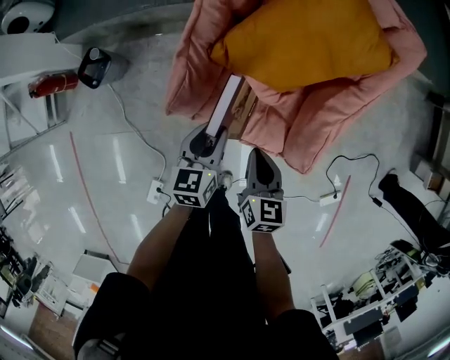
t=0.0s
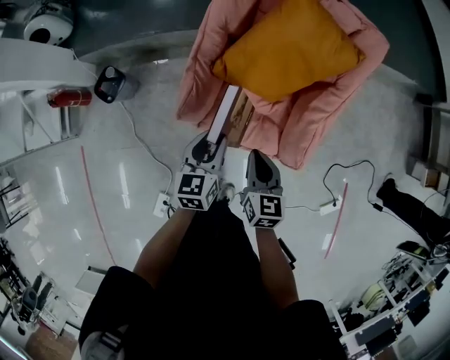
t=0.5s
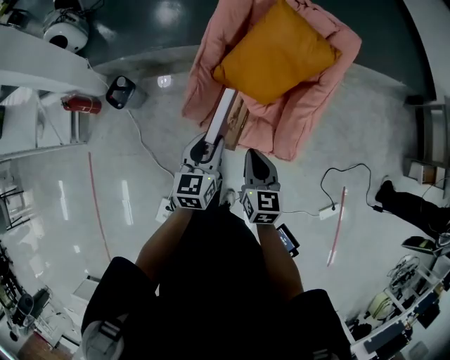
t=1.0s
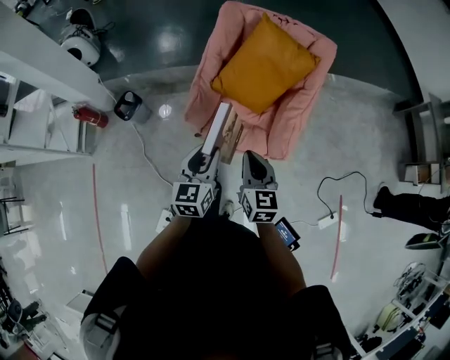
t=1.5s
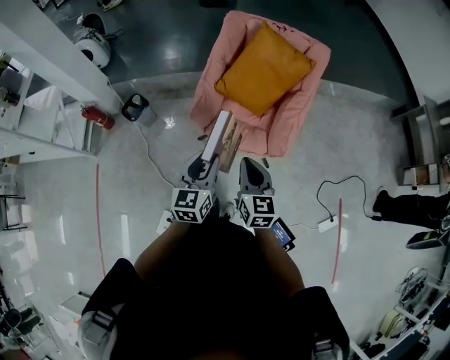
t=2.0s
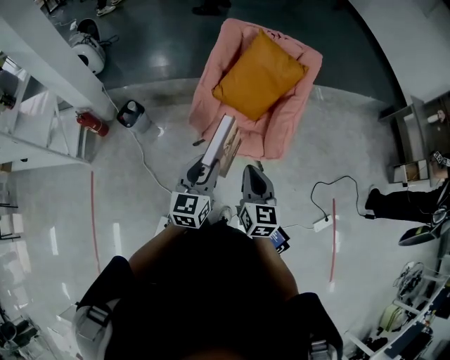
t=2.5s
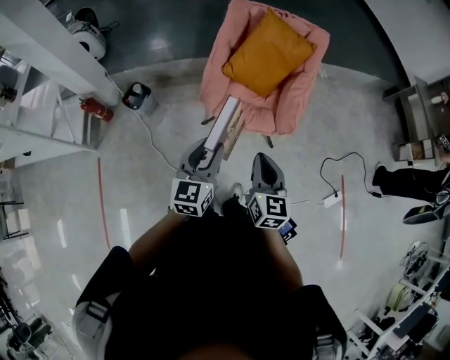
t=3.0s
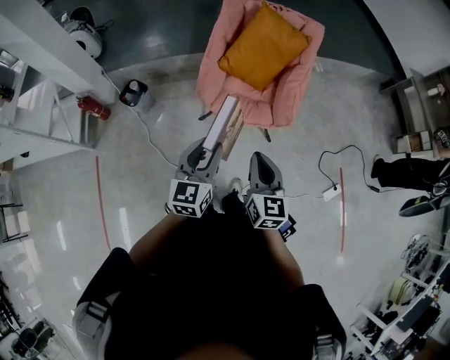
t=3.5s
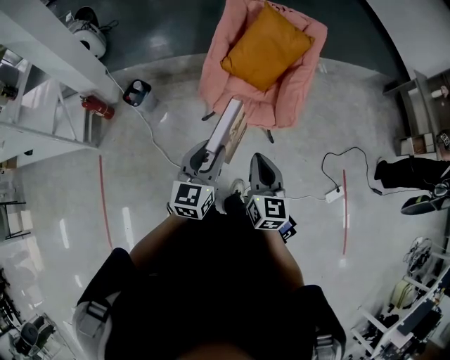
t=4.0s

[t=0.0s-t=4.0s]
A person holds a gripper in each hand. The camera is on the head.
t=0.0s to t=2.0s: Both grippers move upward and backward, about 40 cm. The right gripper changes its angle by roughly 20 degrees, while the left gripper changes its angle by roughly 20 degrees.
t=2.0s to t=4.0s: The left gripper heads backward and to the left, covering approximately 15 cm, while the right gripper is displaced backward by approximately 15 cm.

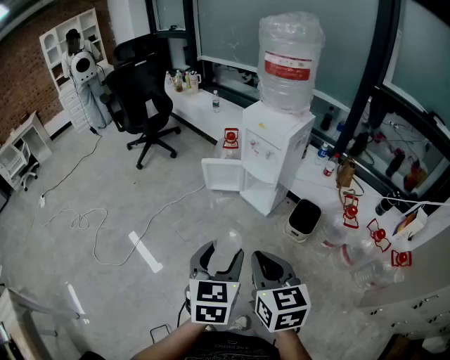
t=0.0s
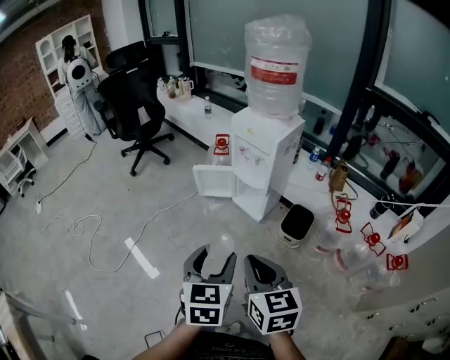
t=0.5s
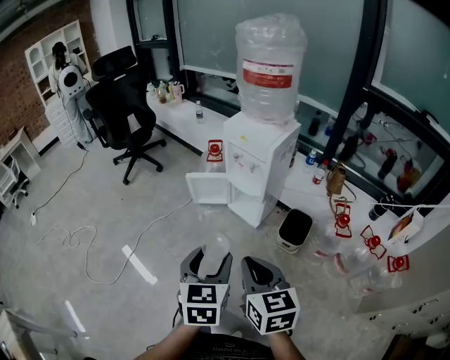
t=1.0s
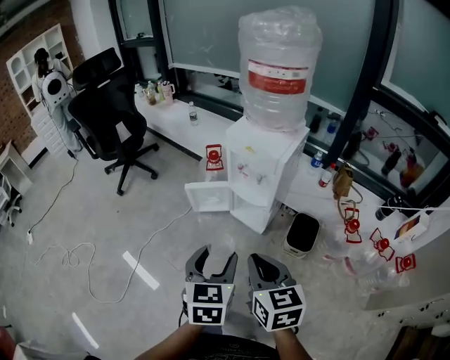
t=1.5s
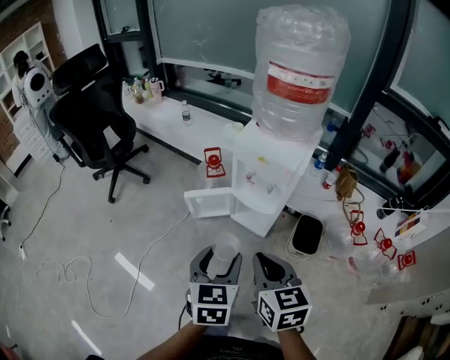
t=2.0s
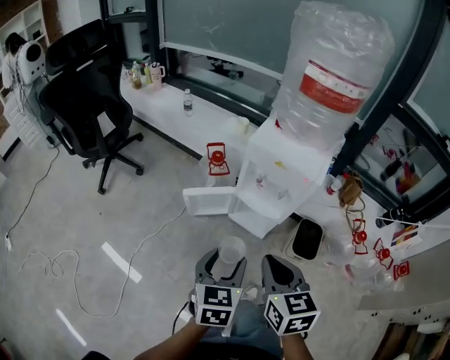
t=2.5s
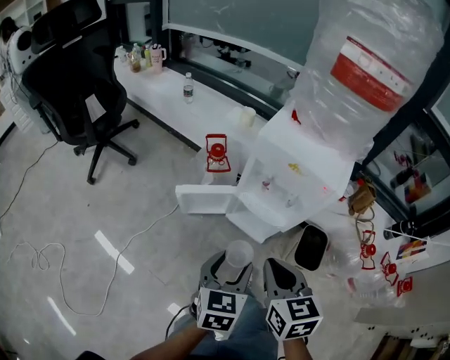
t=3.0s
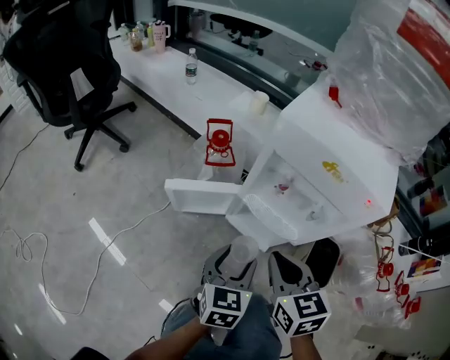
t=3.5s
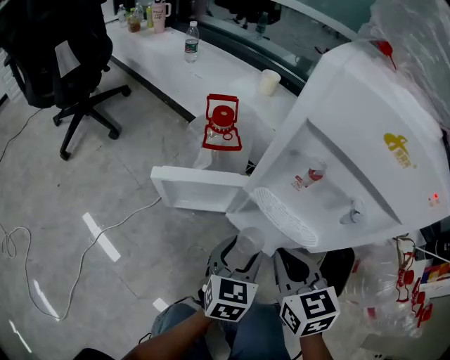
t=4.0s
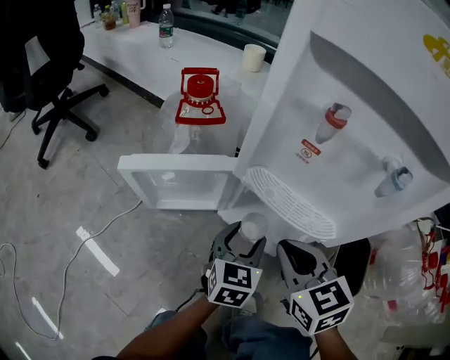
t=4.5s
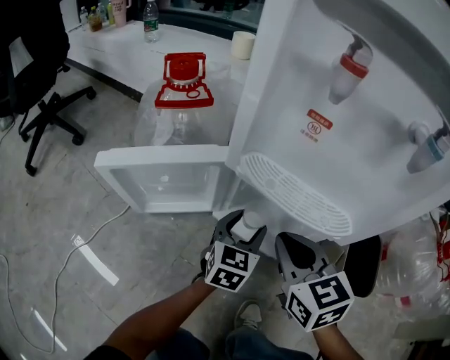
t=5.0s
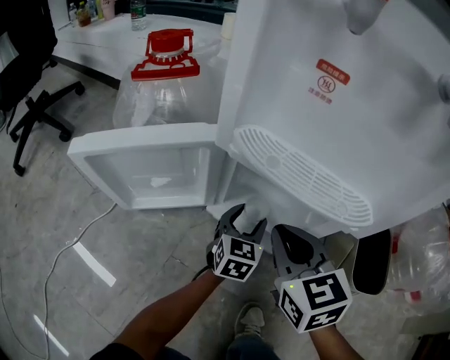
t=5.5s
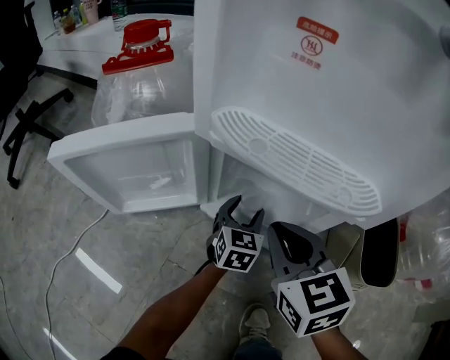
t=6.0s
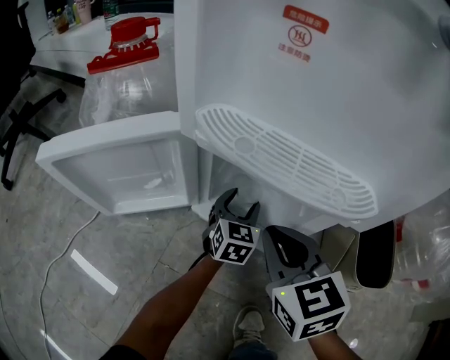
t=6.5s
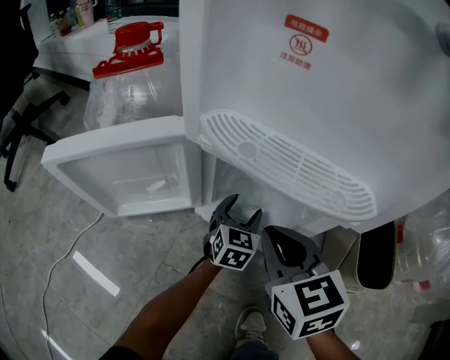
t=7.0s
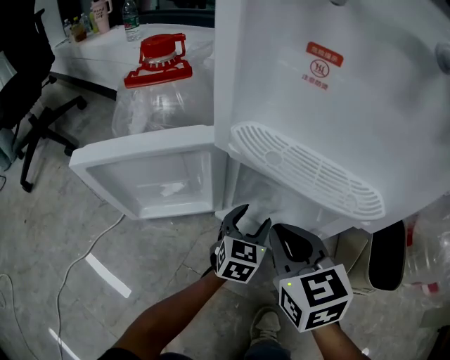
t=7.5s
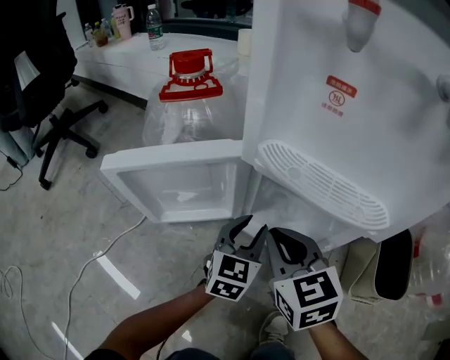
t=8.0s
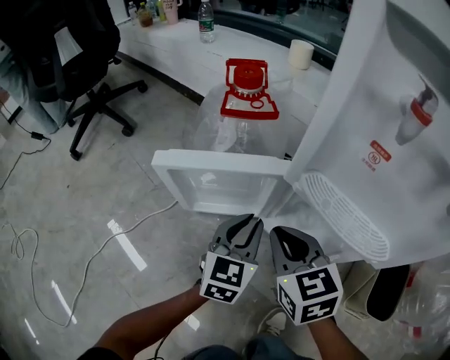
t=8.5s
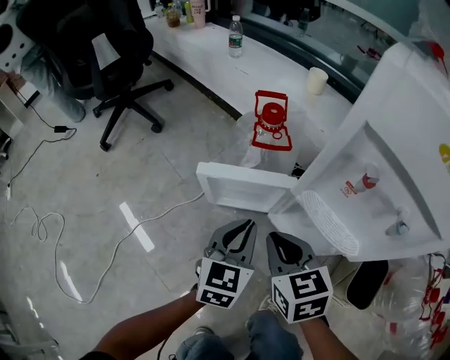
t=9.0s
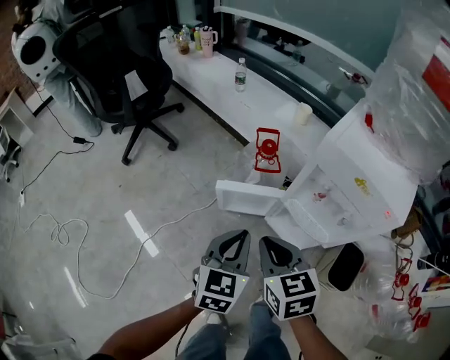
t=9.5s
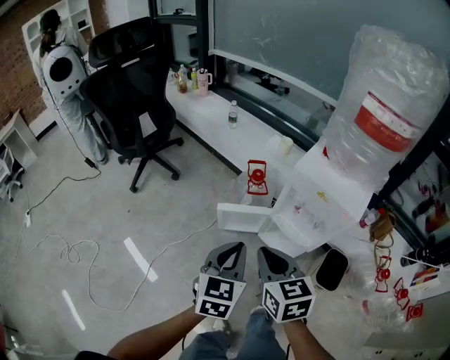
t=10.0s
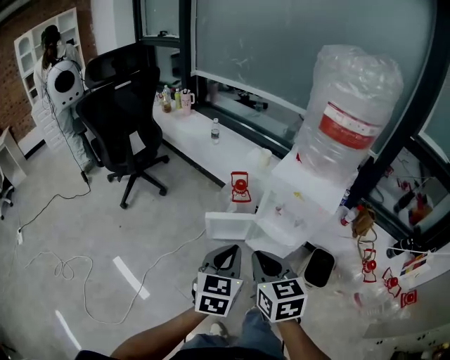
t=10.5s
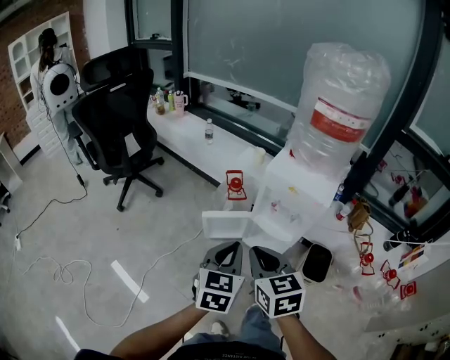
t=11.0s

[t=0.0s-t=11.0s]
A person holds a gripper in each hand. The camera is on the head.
t=0.0s to t=2.0s: Both grippers move forward, approximately 30 cm.
t=2.0s to t=3.5s: Both grippers move downward and forward, about 35 cm.
t=3.5s to t=5.5s: The left gripper is displaced downward and forward by about 50 cm; the right gripper is displaced downward by roughly 35 cm.
t=7.5s to t=9.0s: The right gripper shifts roughly 25 cm upward and to the left, and changes its angle by approximately 20 degrees. The left gripper goes about 40 cm upward and to the left, and closes up.
t=9.0s to t=11.0s: The grippers both shift upward and backward by roughly 50 cm.

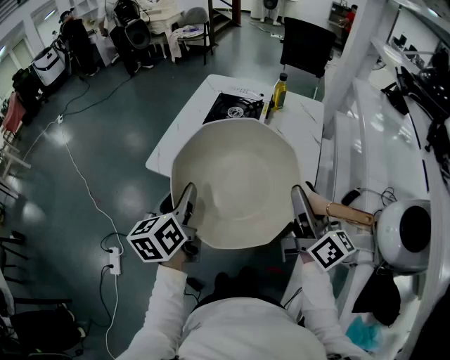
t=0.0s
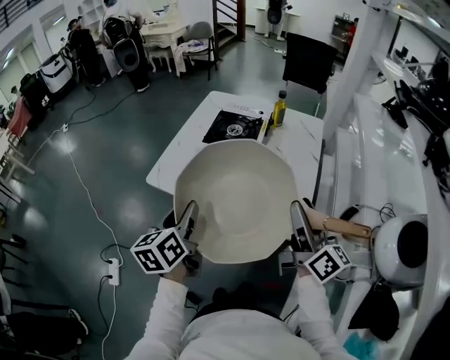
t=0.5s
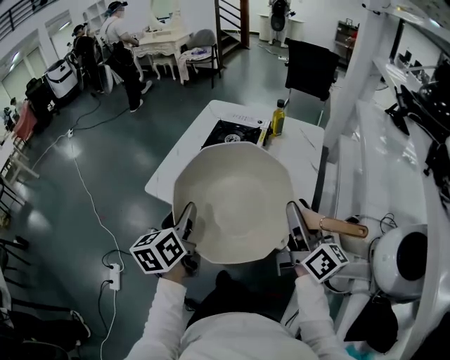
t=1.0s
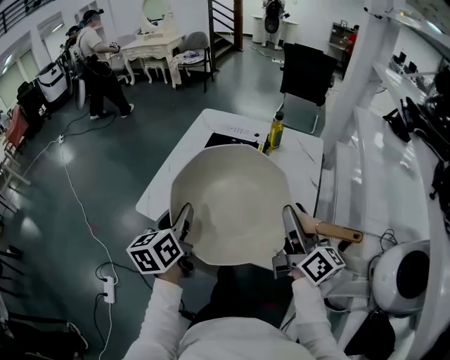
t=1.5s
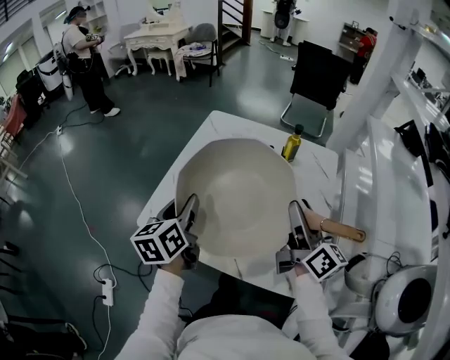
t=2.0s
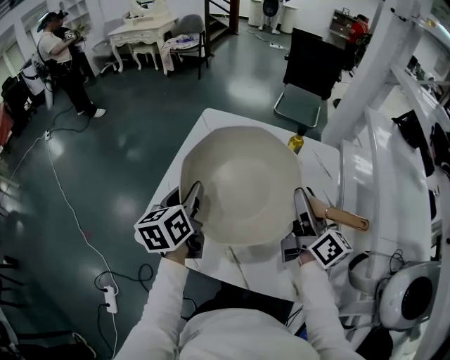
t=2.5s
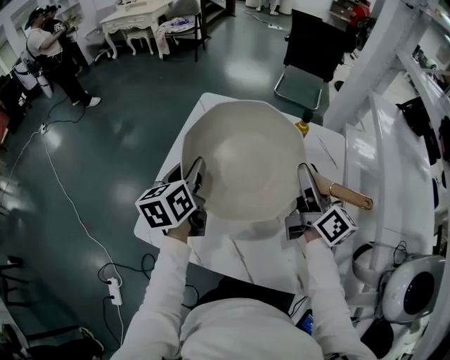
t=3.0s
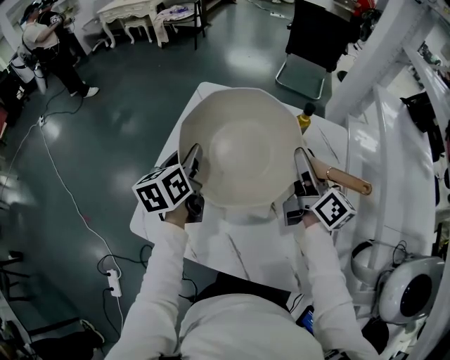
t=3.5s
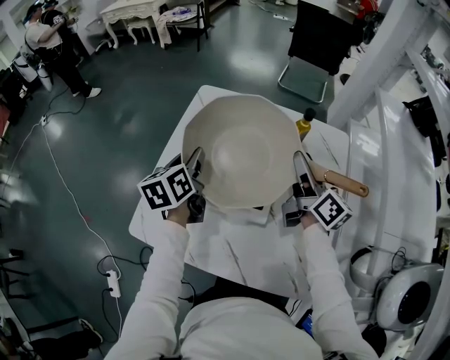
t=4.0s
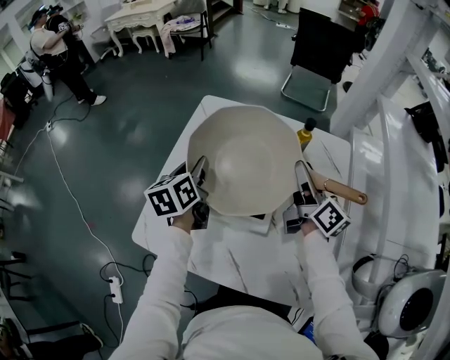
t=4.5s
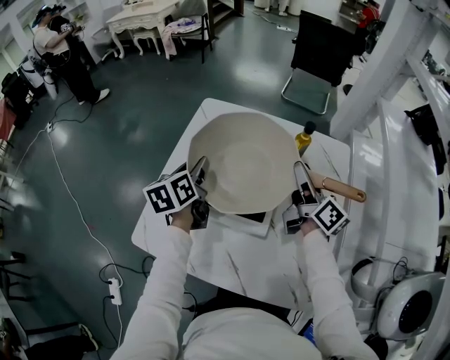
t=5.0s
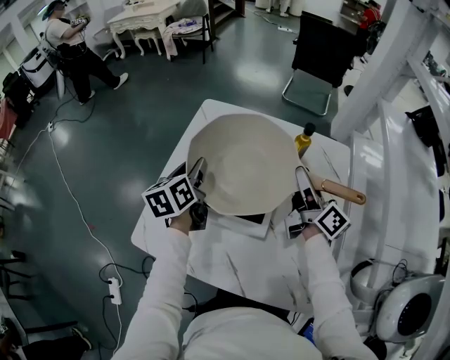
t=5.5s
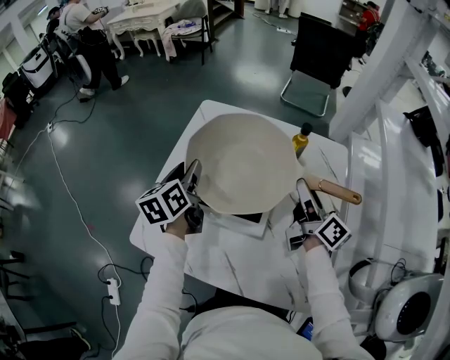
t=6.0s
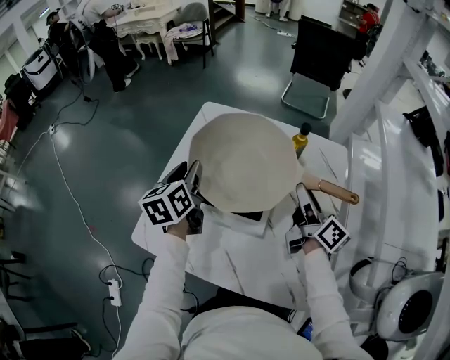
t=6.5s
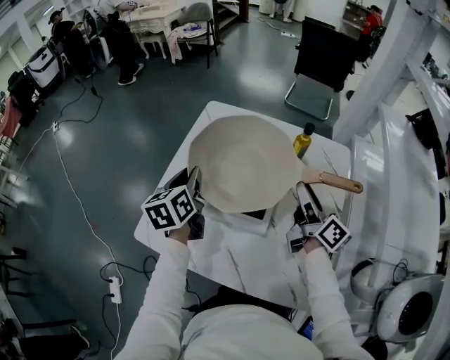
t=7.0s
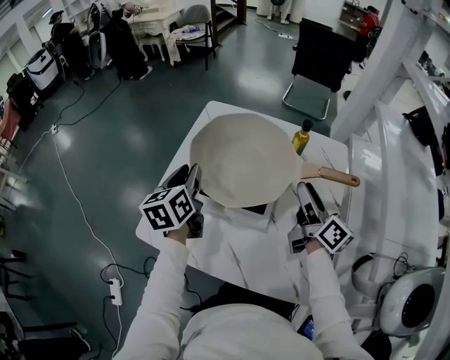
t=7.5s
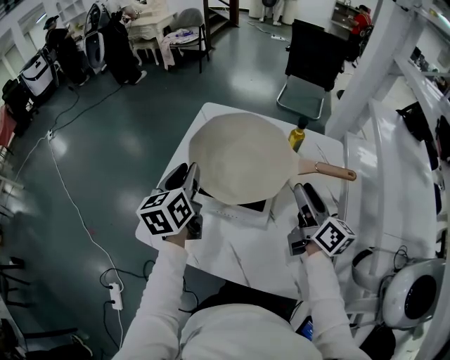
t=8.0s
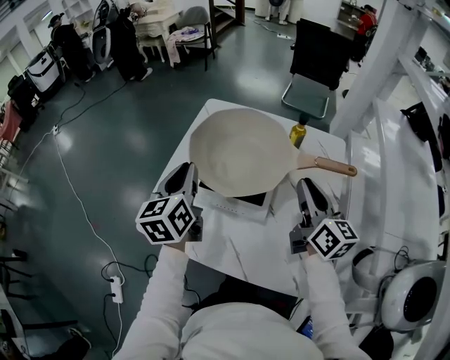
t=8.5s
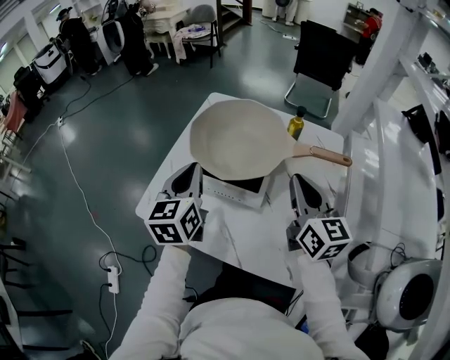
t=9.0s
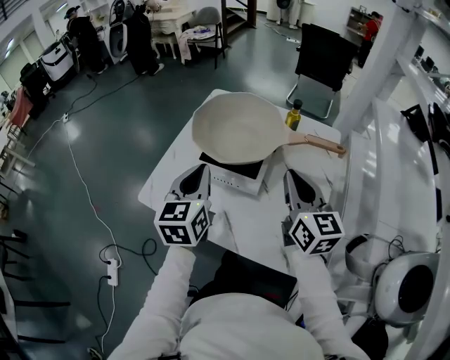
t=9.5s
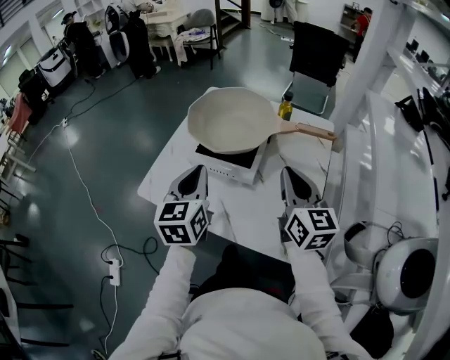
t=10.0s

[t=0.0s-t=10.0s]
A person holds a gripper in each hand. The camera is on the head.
t=0.0s to t=2.0s: Both grippers travel together forward, roughly 25 cm.
t=2.0s to t=4.0s: The grippers both shift forward by about 20 cm.
t=4.0s to t=6.0s: There are only small adjustments of the grippers.
t=6.0s to t=8.0s: Both grippers travel together backward, some 5 cm.
t=8.0s to t=10.0s: The grippers both shift backward by approximately 15 cm. The right gripper rotates about 30 degrees, and closes its fingers. Meanwhile the left gripper closes up.

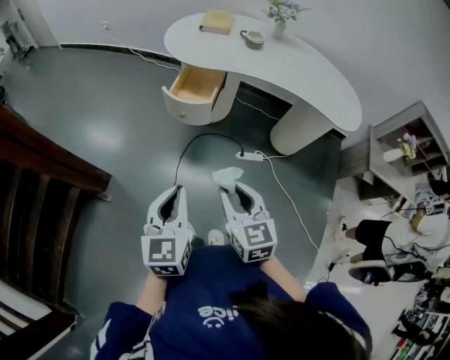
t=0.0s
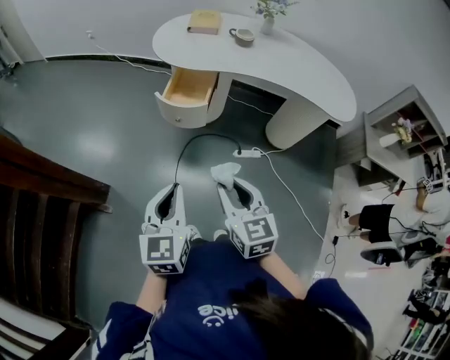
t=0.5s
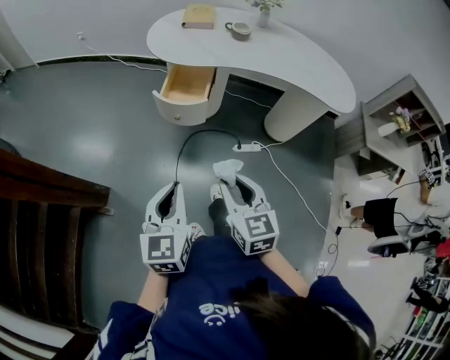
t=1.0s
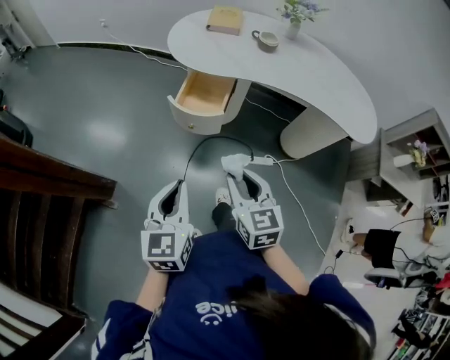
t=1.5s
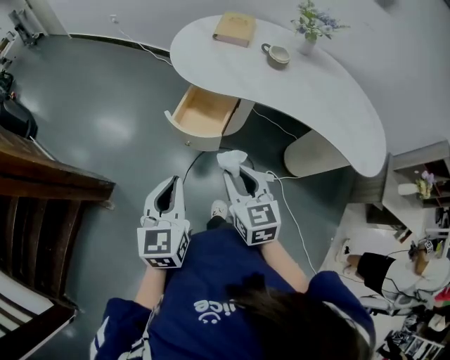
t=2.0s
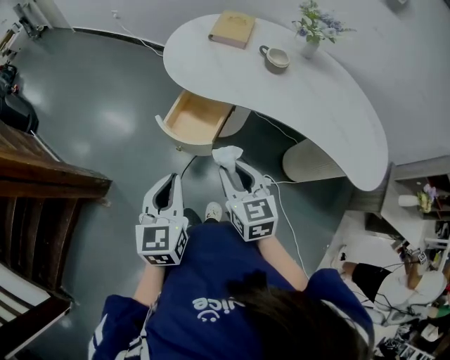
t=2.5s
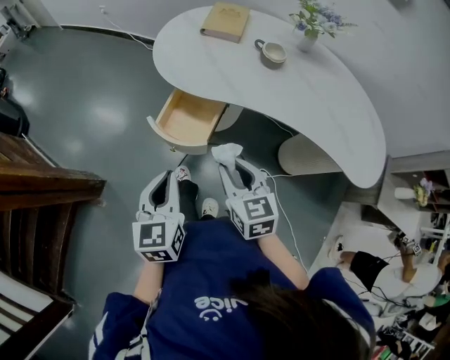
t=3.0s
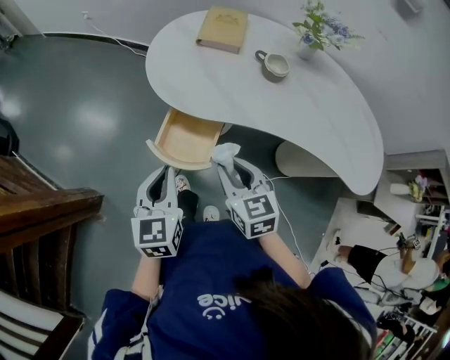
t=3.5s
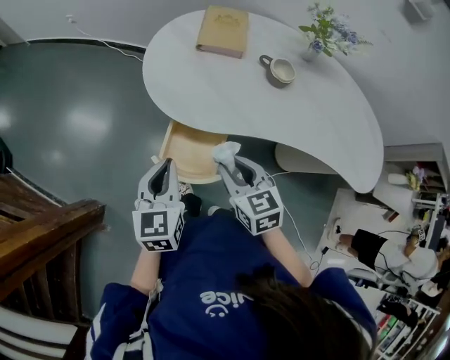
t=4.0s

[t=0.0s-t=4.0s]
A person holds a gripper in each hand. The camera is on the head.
t=0.0s to t=2.0s: The two grippers go some 25 cm forward.
t=2.0s to t=4.0s: Both grippers travel together forward, about 25 cm.
